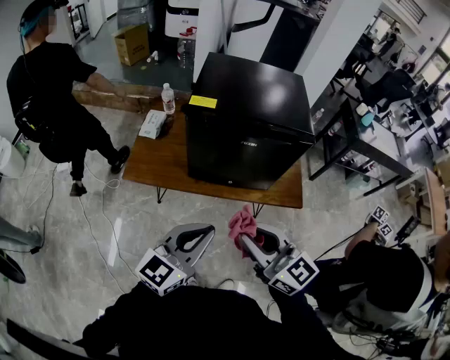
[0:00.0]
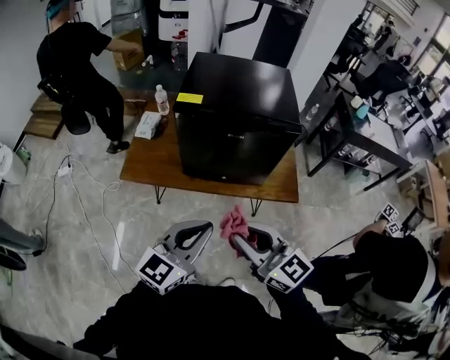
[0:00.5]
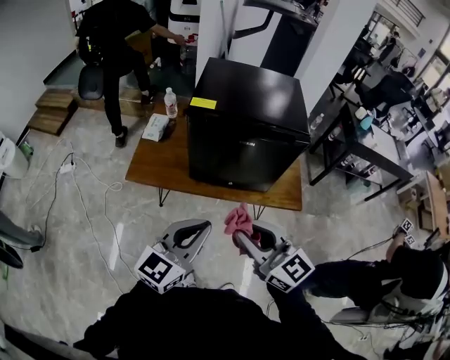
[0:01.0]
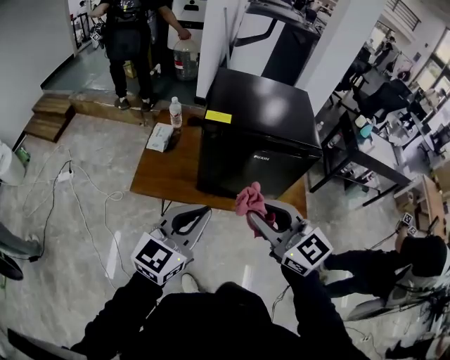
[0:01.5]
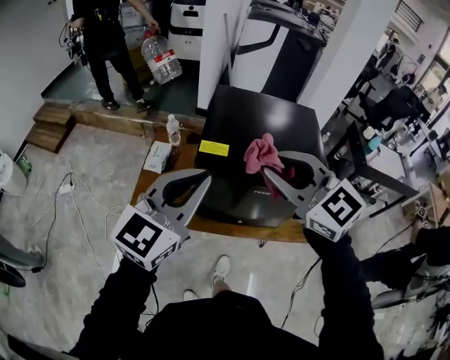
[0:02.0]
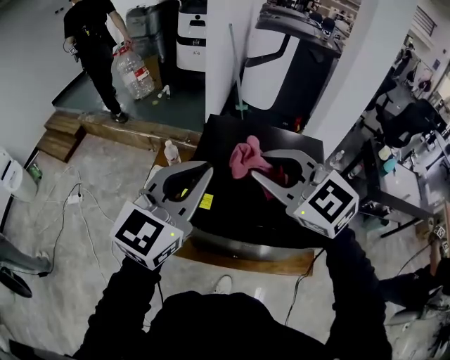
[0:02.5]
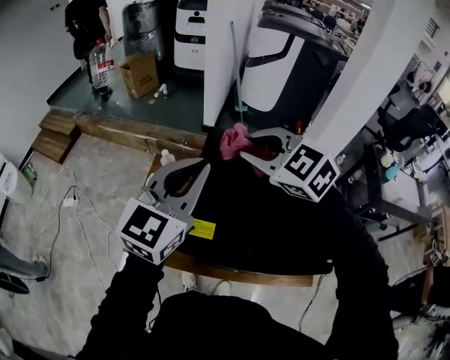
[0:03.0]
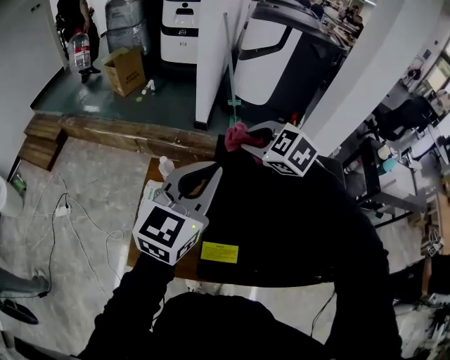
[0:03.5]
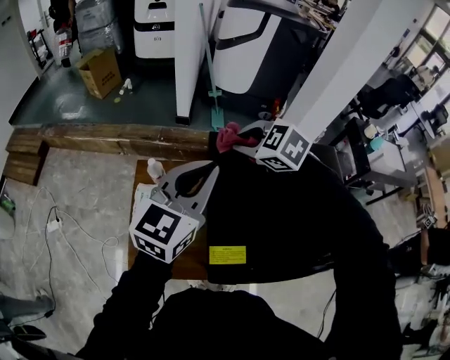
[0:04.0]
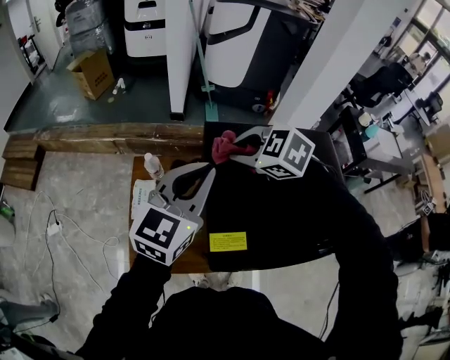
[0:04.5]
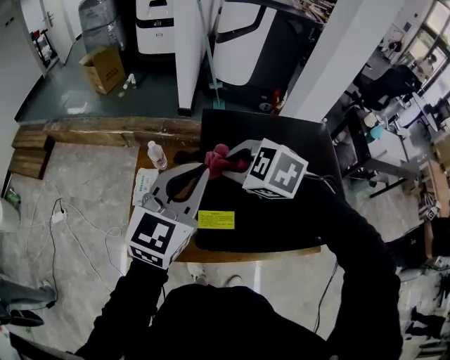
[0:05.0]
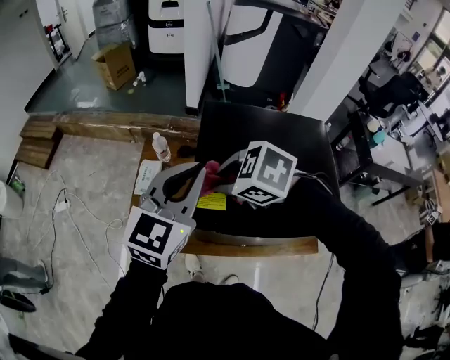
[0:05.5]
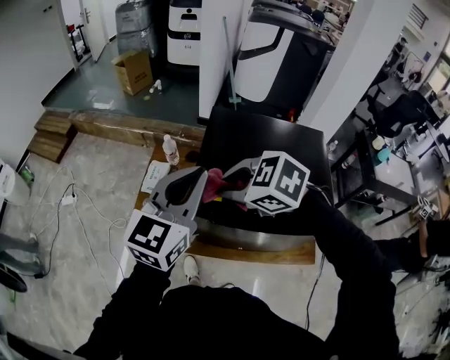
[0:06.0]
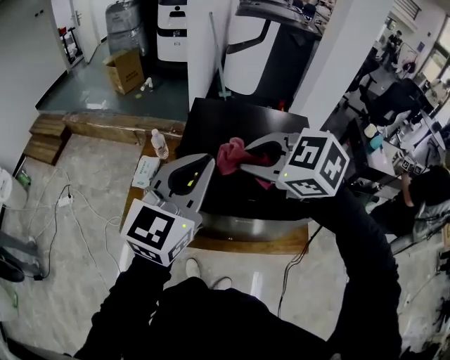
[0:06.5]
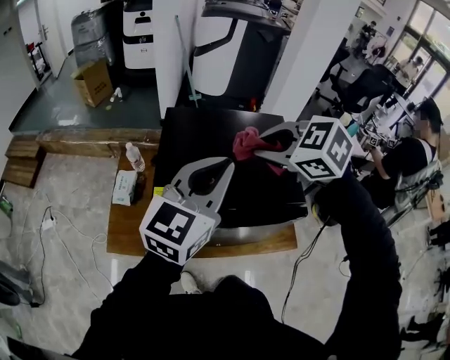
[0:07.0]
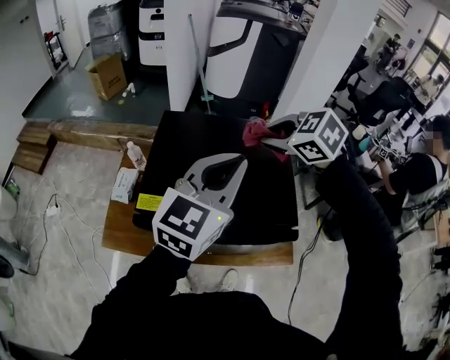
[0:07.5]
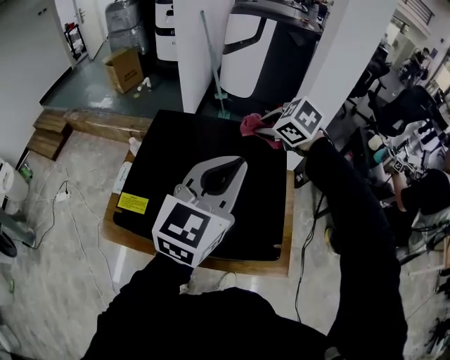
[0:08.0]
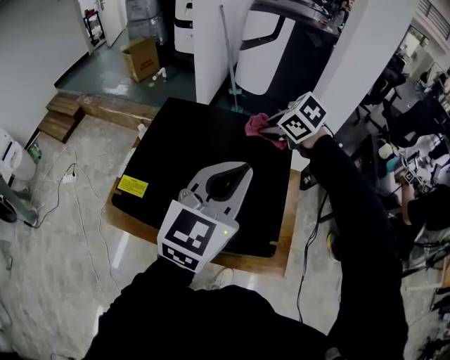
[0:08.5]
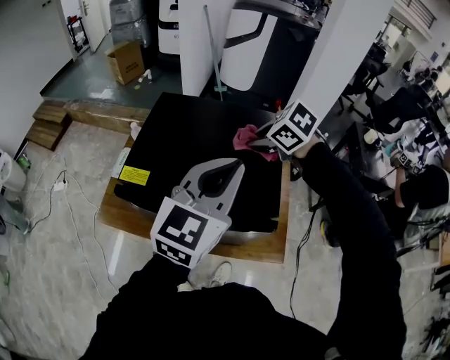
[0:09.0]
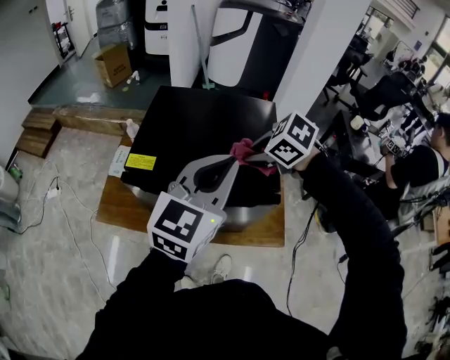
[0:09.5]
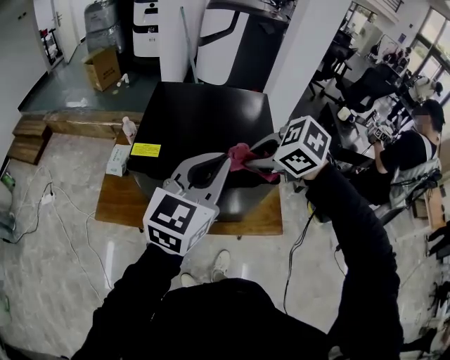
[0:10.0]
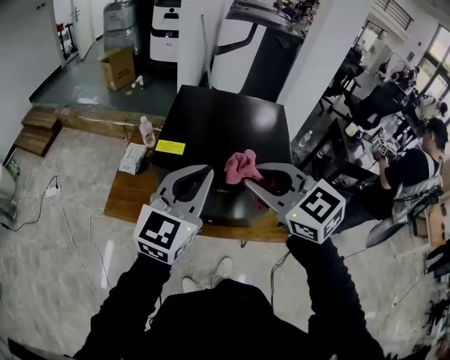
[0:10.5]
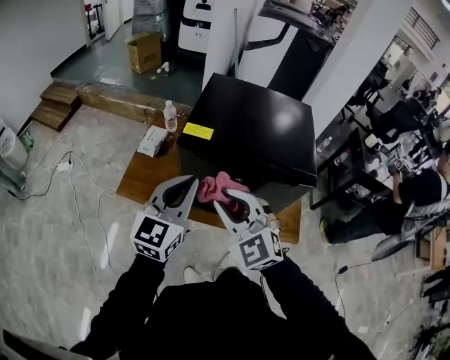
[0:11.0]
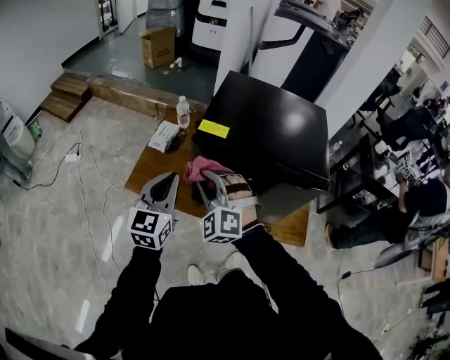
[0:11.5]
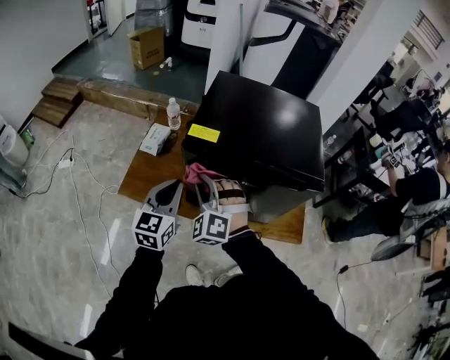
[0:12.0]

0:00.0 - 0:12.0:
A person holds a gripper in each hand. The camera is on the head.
0:00.0 - 0:02.0: The two grippers go some 30 cm forward and upward. The right gripper swivels approximately 30 degrees.
0:02.0 - 0:04.0: Both grippers travel together forward, some 40 cm. The right gripper tilts its fingers approximately 40 degrees downward.
0:04.0 - 0:06.0: The grippers both shift backward by some 25 cm.
0:06.0 - 0:08.0: The left gripper goes roughly 30 cm to the right; the right gripper heads to the right and forward, covering approximately 40 cm.
0:08.0 - 0:10.0: The left gripper shifts roughly 20 cm backward and to the left. Meanwhile the right gripper moves backward and to the left, about 35 cm.
0:10.0 - 0:12.0: The grippers both shift to the left and downward by approximately 30 cm. The right gripper changes its angle by some 60 degrees. The left gripper turns by roughly 30 degrees.

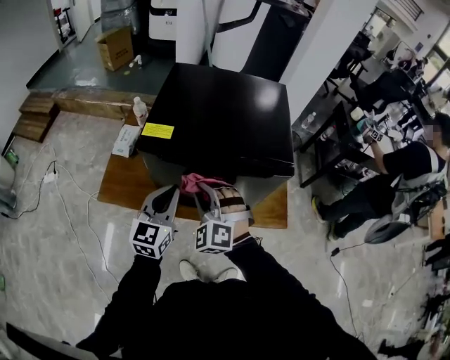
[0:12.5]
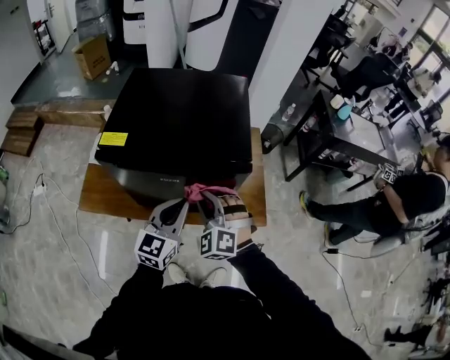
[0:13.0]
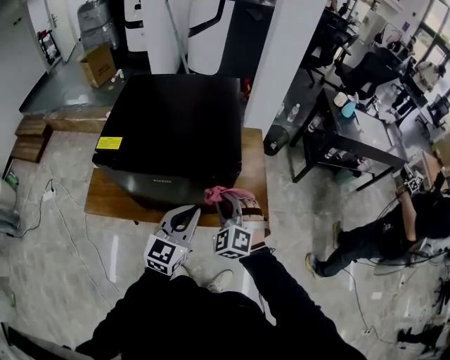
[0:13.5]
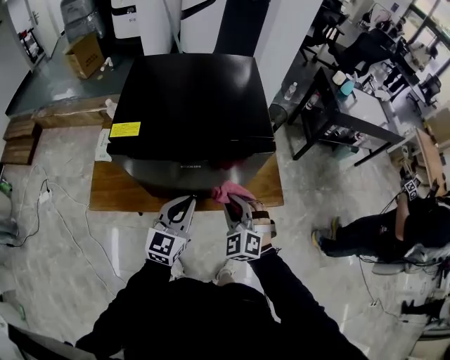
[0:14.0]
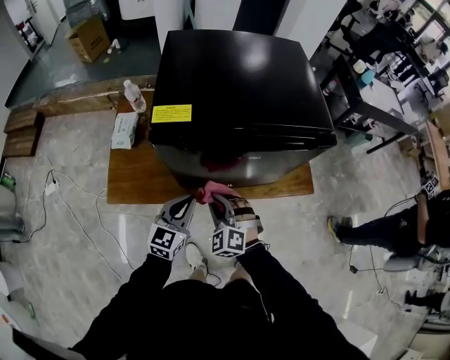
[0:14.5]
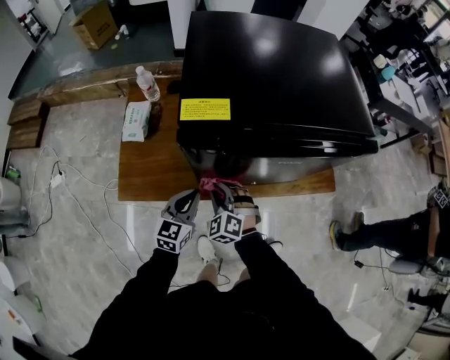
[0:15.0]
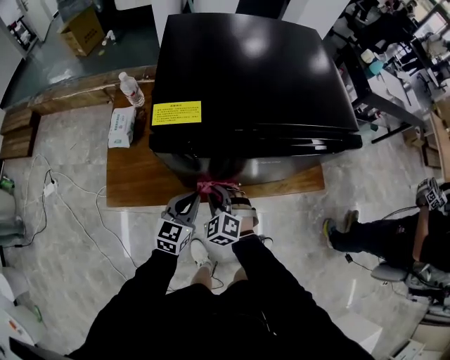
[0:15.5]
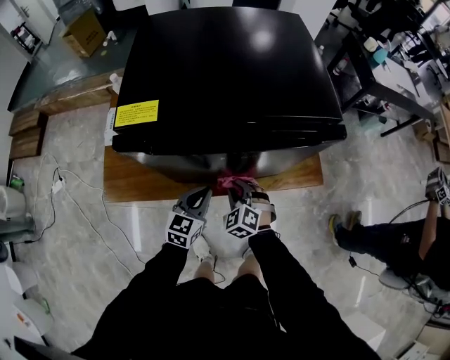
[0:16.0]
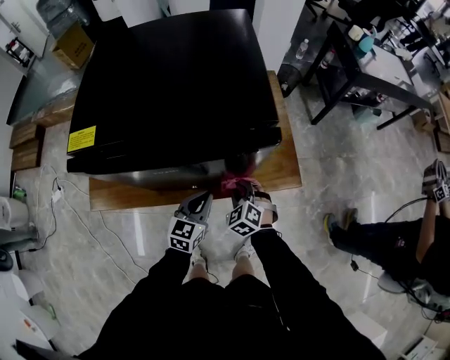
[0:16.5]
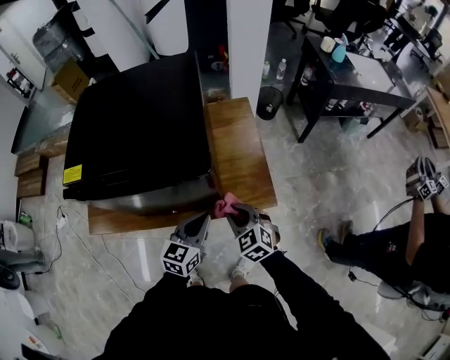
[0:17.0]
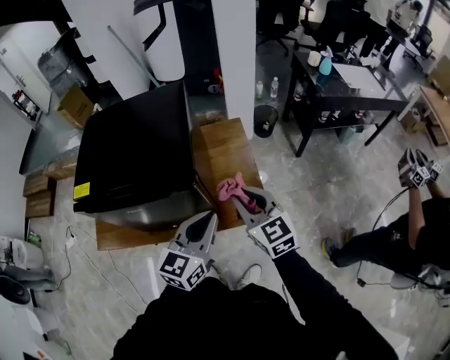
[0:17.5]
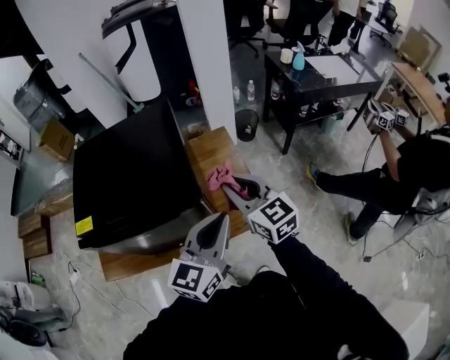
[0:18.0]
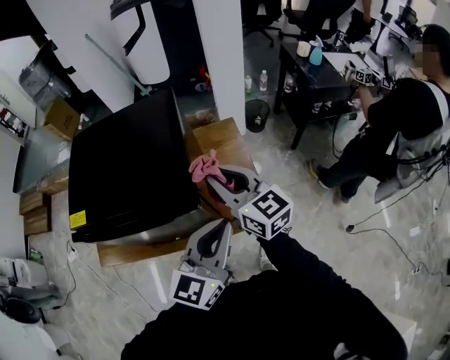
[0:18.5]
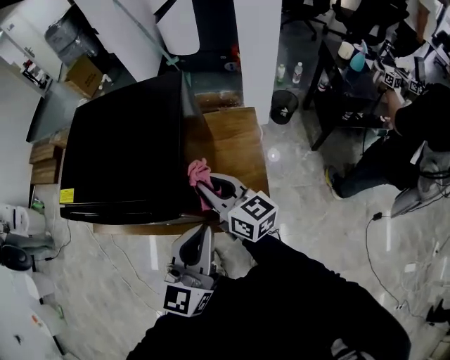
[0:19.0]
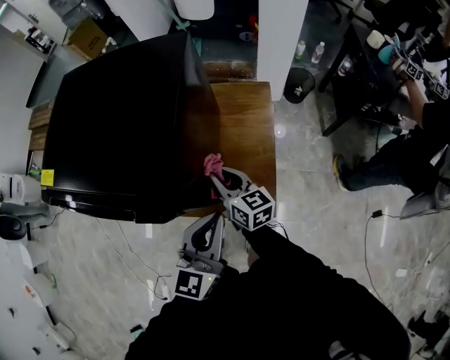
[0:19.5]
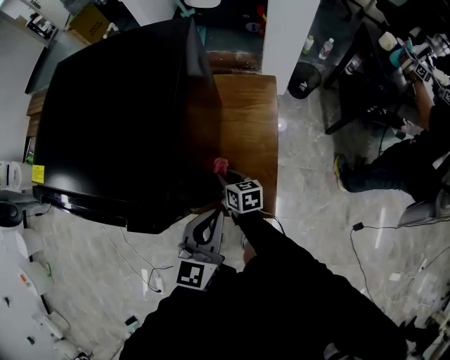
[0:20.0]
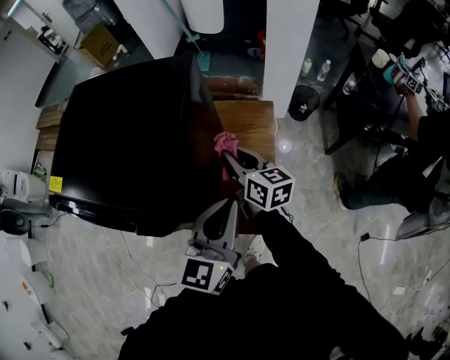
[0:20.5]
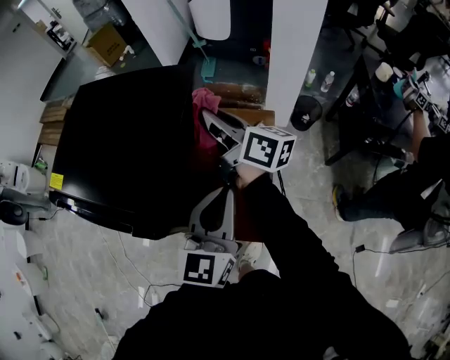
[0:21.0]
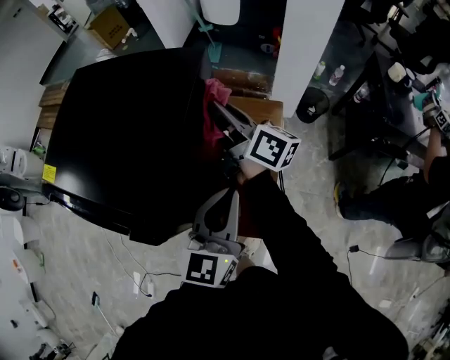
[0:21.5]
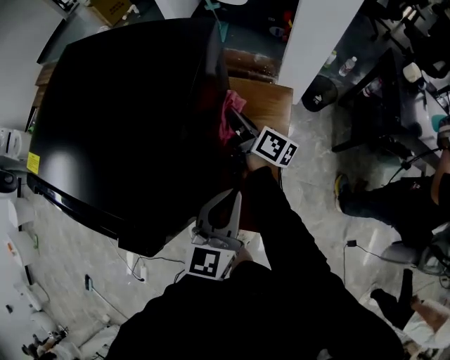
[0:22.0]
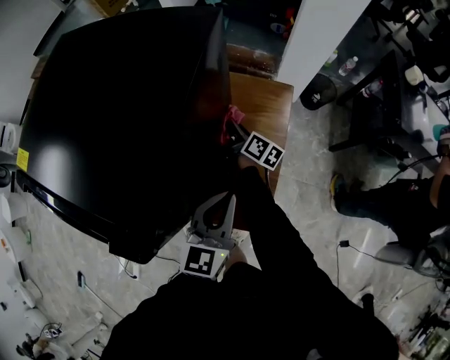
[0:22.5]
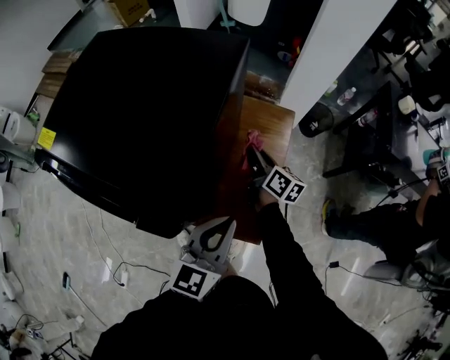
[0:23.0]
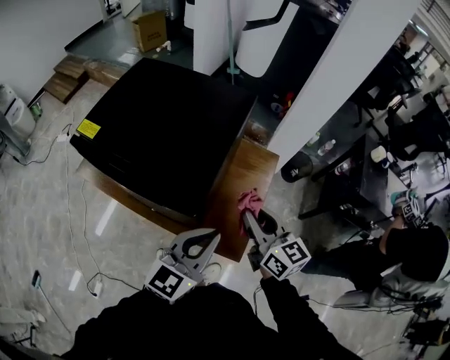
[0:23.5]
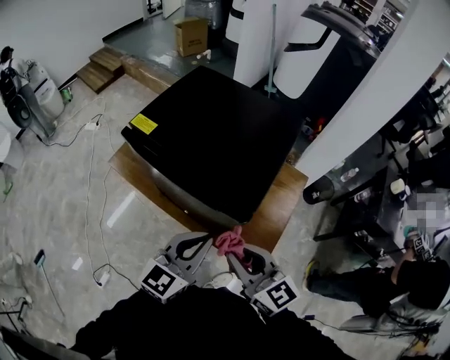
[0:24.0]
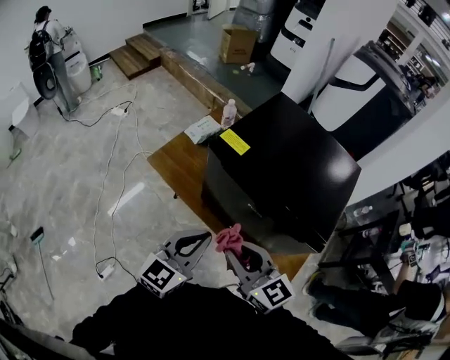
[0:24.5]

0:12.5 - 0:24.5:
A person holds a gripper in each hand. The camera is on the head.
0:12.5 - 0:14.5: Both grippers move downward, about 15 cm. The right gripper moves approximately 20 cm to the right and comes back; the left gripper reaches approximately 20 cm to the right, then returns.
0:14.5 - 0:16.5: The left gripper heads to the right and downward, covering approximately 25 cm. The right gripper moves to the right, downward and forward, approximately 30 cm, and swivels roughly 20 degrees.
0:16.5 - 0:18.5: The left gripper heads upward and to the right, covering about 40 cm, and turns by about 20 degrees. Meanwhile the right gripper travels upward by roughly 40 cm, and angles its fingers upward, by some 40 degrees.
0:18.5 - 0:20.5: The left gripper heads forward, downward and to the right, covering approximately 20 cm, and changes its angle by approximately 30 degrees; the right gripper goes approximately 25 cm downward and forward, and rotates approximately 30 degrees.
0:20.5 - 0:22.5: The left gripper travels downward by some 15 cm. Meanwhile the right gripper heads downward and forward, covering about 25 cm, and changes its angle by approximately 30 degrees.
0:22.5 - 0:24.5: Both grippers are carried to the left and backward, some 50 cm. The left gripper heads upward, covering about 20 cm. The right gripper is displaced upward by approximately 35 cm, and twists some 60 degrees counterclockwise, seen from behind.

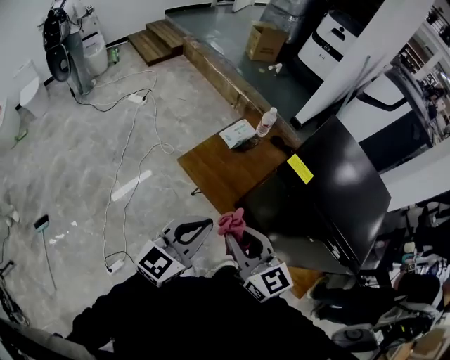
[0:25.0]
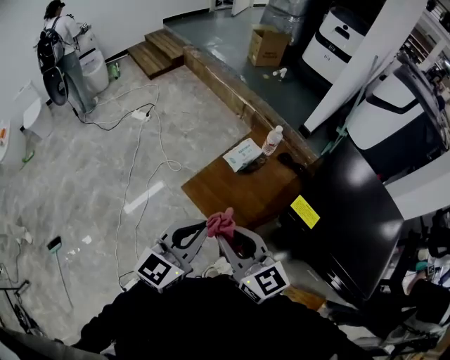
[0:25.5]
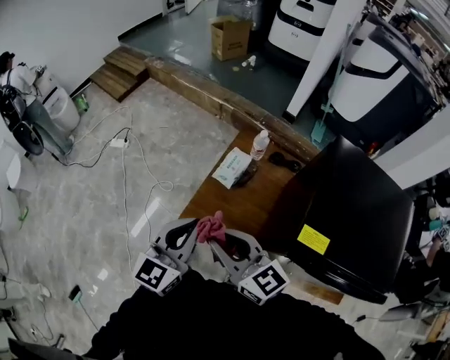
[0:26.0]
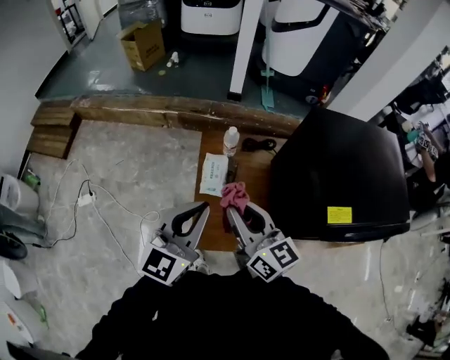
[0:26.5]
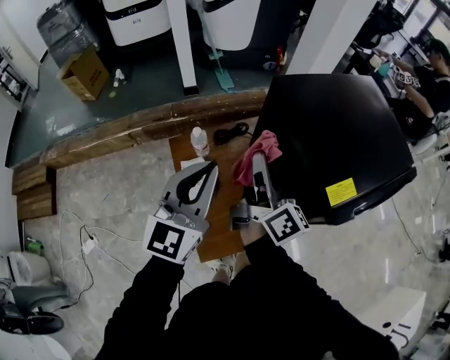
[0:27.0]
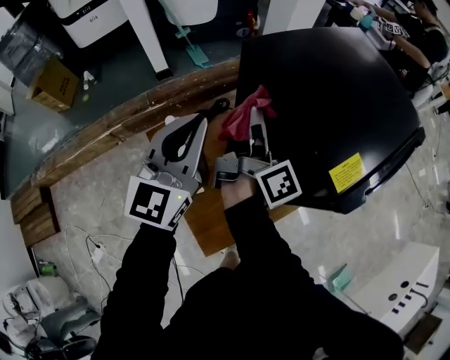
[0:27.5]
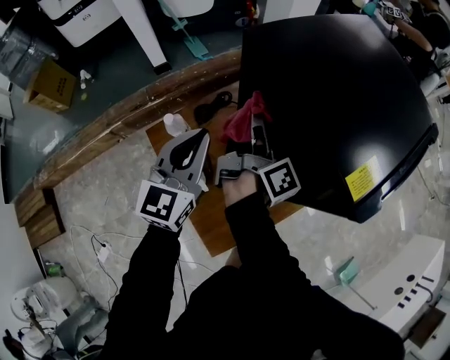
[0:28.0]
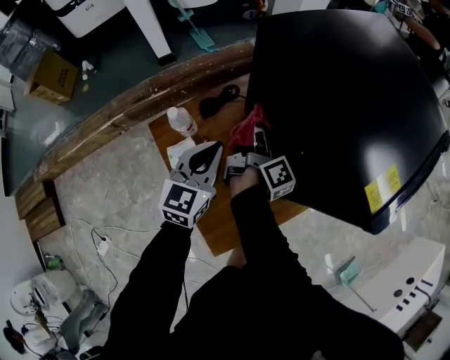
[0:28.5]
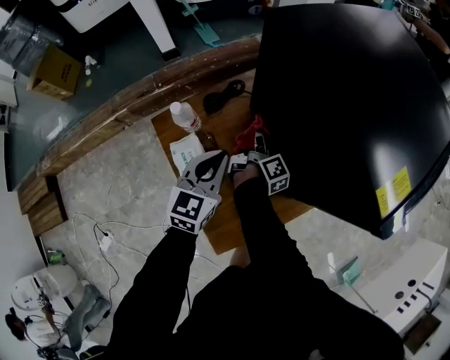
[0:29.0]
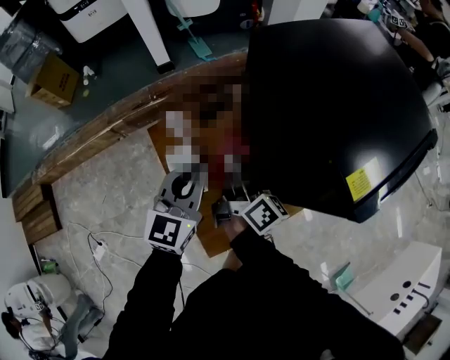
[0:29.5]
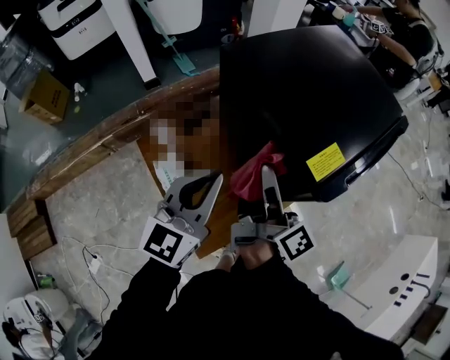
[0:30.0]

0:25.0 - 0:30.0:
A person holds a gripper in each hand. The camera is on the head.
0:25.0 - 0:27.5: The pair of grippers is taken approximately 50 cm. The right gripper turns by roughly 120 degrees; the left gripper changes its angle by roughly 60 degrees.
0:27.5 - 0:30.0: The right gripper moves backward and to the right, approximately 15 cm, and goes downward and returns, some 30 cm each way; the left gripper is displaced to the right and backward by approximately 10 cm, and travels downward and back again, about 25 cm each way.
